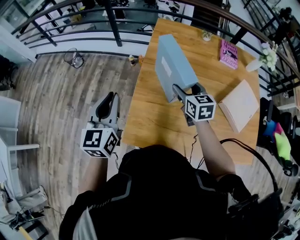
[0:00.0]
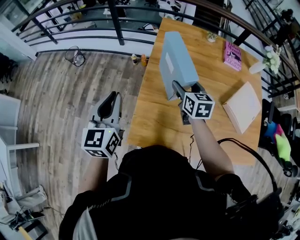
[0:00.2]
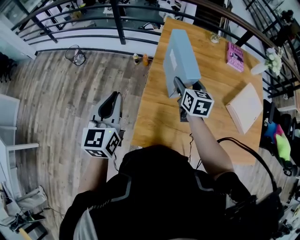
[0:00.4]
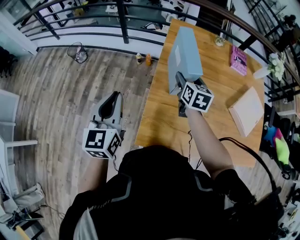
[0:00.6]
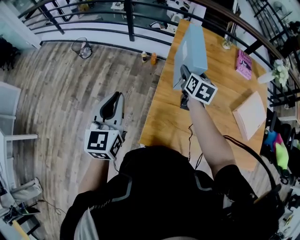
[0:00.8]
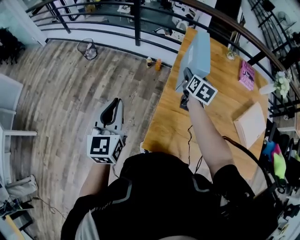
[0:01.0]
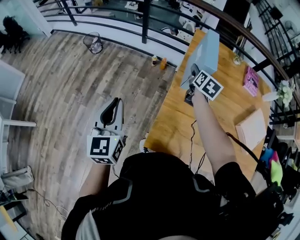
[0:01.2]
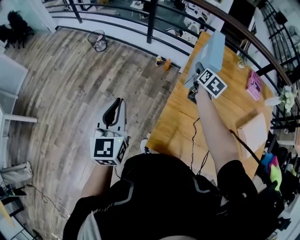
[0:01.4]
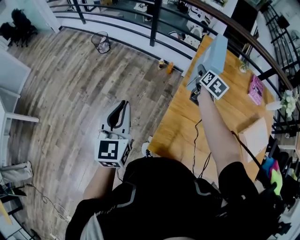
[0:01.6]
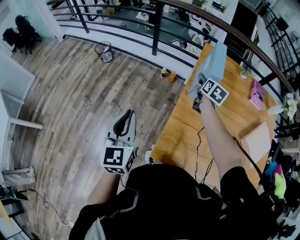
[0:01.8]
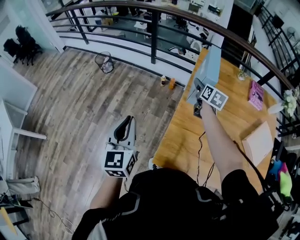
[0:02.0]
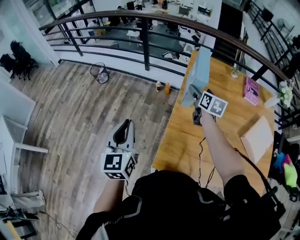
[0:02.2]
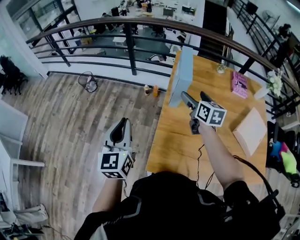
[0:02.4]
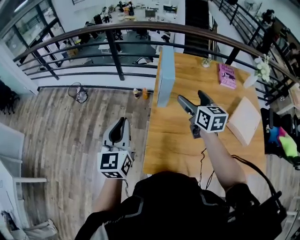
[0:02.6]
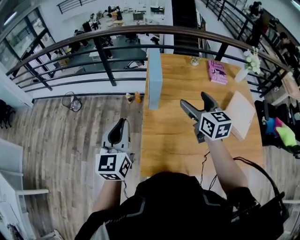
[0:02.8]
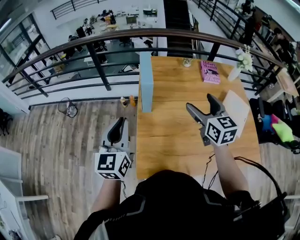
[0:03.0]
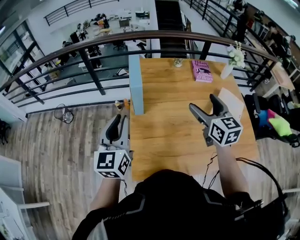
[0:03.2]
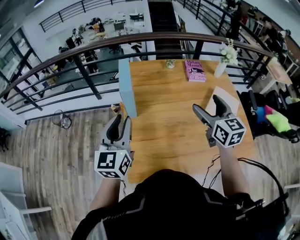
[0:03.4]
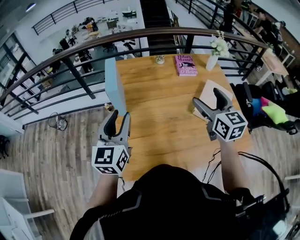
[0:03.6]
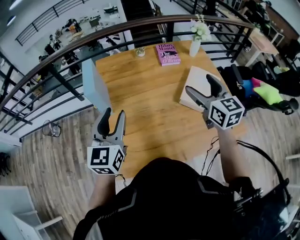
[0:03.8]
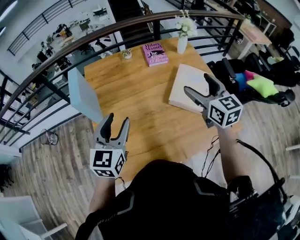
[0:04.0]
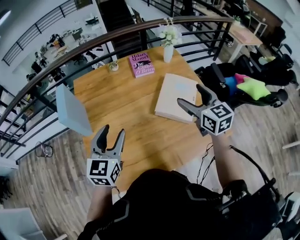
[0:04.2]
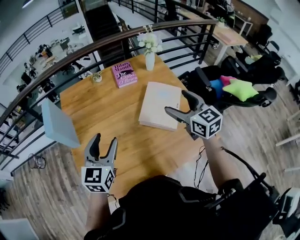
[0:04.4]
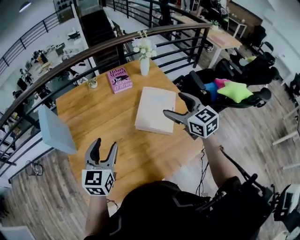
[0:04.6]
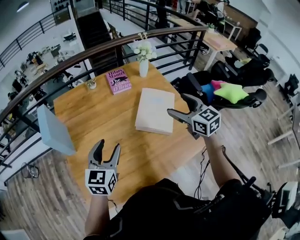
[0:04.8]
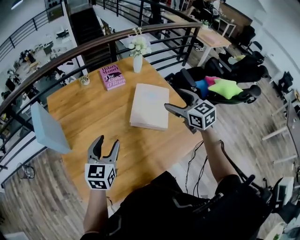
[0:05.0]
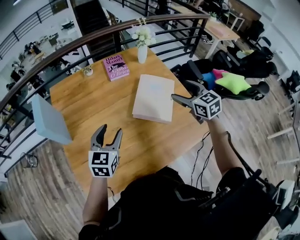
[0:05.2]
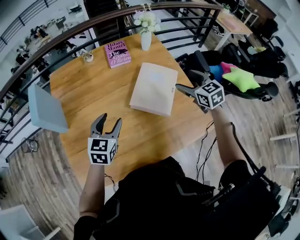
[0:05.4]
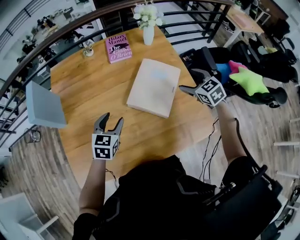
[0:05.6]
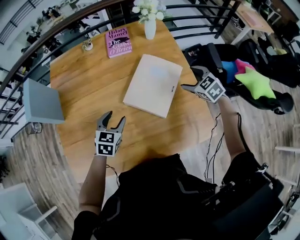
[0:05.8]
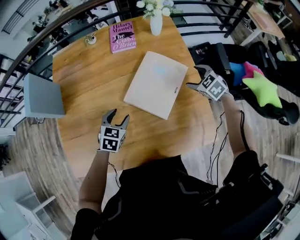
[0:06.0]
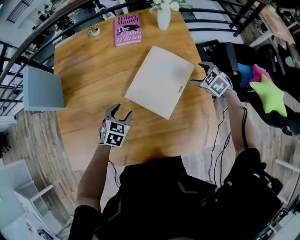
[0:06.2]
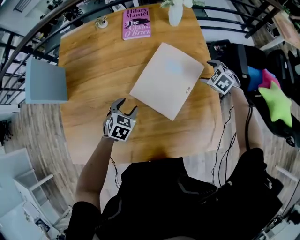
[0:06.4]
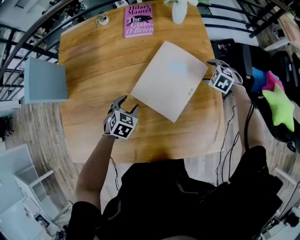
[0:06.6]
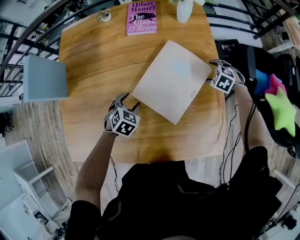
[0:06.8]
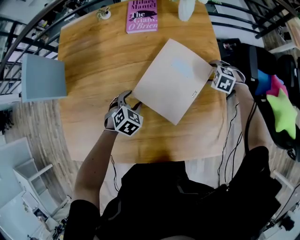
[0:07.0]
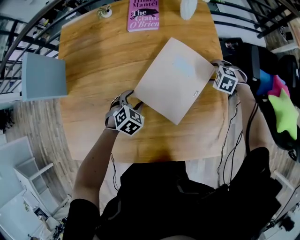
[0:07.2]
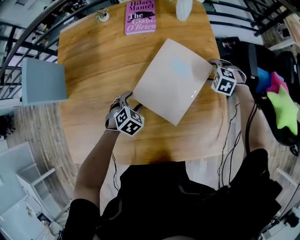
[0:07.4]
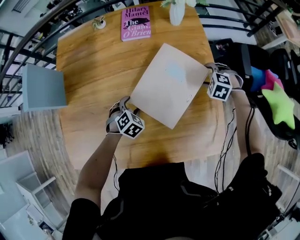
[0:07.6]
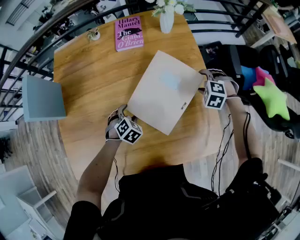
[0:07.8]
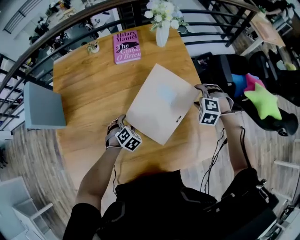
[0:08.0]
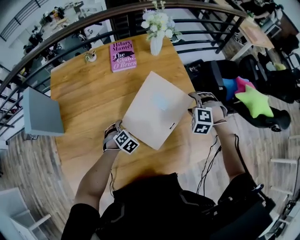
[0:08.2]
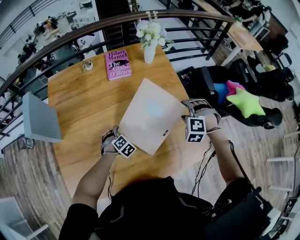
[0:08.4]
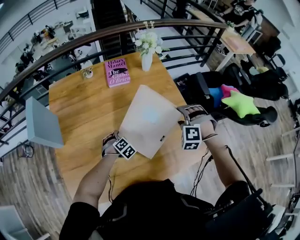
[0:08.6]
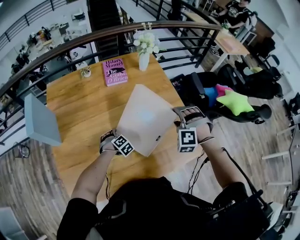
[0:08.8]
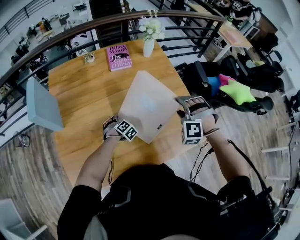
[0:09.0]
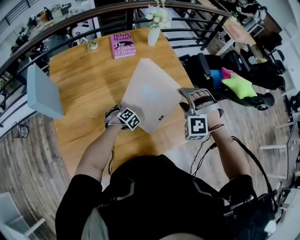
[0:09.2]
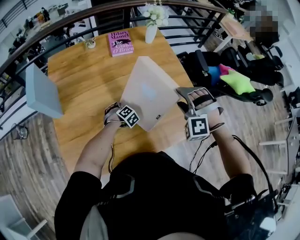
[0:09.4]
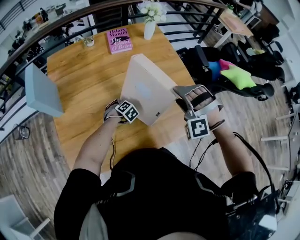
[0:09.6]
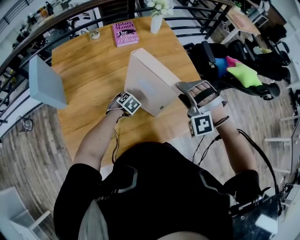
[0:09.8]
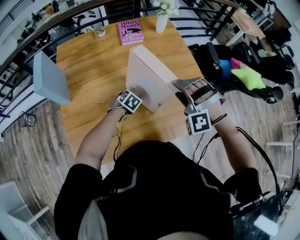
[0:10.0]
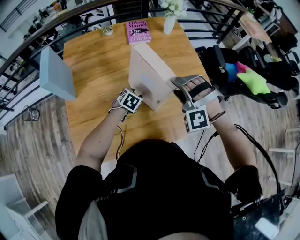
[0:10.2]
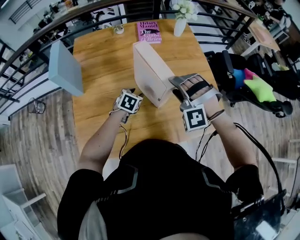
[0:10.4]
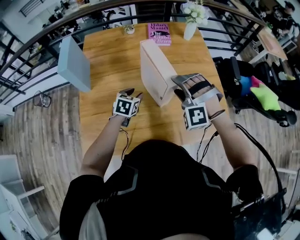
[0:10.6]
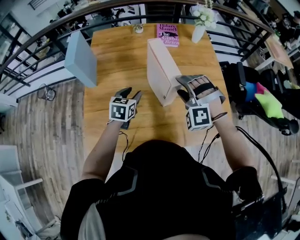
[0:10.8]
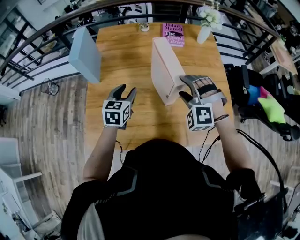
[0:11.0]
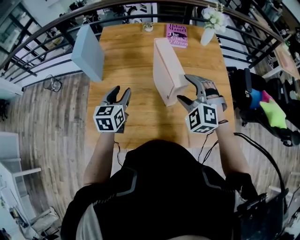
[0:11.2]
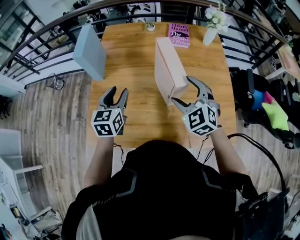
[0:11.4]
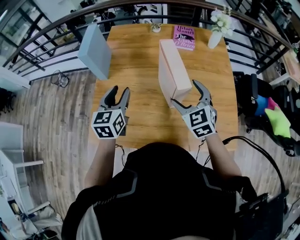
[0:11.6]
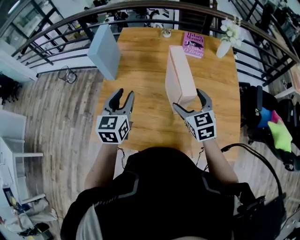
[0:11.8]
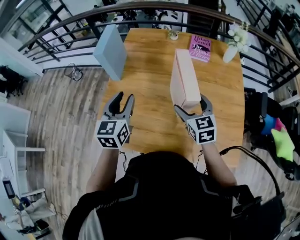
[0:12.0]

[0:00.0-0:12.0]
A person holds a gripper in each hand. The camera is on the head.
0:00.0 to 0:01.6: The right gripper travels forward and to the left by about 20 cm, and turns by roughly 30 degrees, while the left gripper shifts some 15 cm to the left.
0:01.6 to 0:03.0: The right gripper is displaced backward, upward and to the right by approximately 30 cm, and turns by some 30 degrees. The left gripper goes roughly 15 cm to the right, and turns by approximately 30 degrees.
0:03.0 to 0:04.4: Both grippers travel together to the right, some 35 cm. The left gripper changes its angle by some 30 degrees, and opens its fingers.
0:04.4 to 0:06.0: The left gripper is displaced downward and to the right by some 25 cm, and tilts its fingers some 30 degrees downward, while the right gripper moves downward, to the right and forward, roughly 35 cm, and angles its fingers downward, by some 40 degrees.
0:06.0 to 0:07.6: The grippers both shift downward by approximately 10 cm. The left gripper turns by some 30 degrees; the right gripper rotates some 30 degrees.
0:07.6 to 0:09.0: The right gripper is displaced upward, backward and to the left by approximately 30 cm, and turns by some 40 degrees. The left gripper is displaced to the left by some 5 cm.
0:09.0 to 0:10.4: The left gripper travels upward by roughly 10 cm, and changes its angle by about 40 degrees. The right gripper moves to the left, some 15 cm, and changes its angle by about 20 degrees.
0:10.4 to 0:12.0: The left gripper shifts roughly 25 cm upward, and points its fingers approximately 30 degrees further upward. The right gripper shifts by roughly 5 cm, twists about 80 degrees clockwise, seen from behind, and opens its fingers.

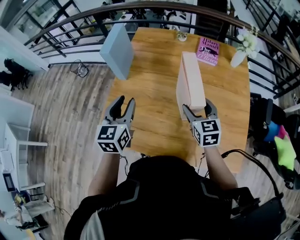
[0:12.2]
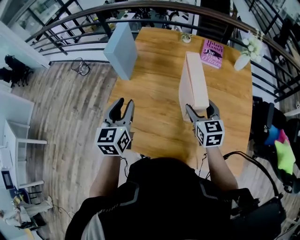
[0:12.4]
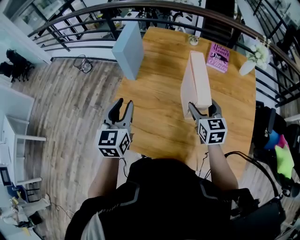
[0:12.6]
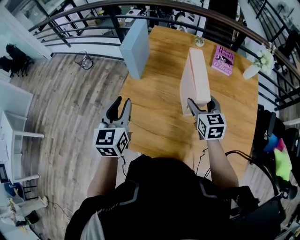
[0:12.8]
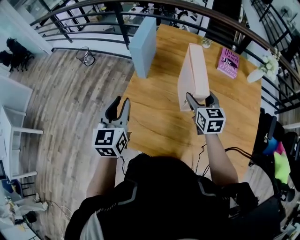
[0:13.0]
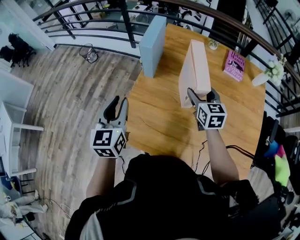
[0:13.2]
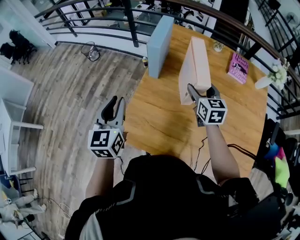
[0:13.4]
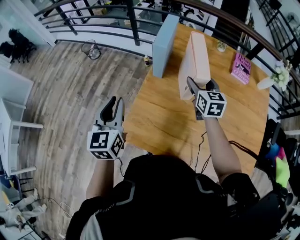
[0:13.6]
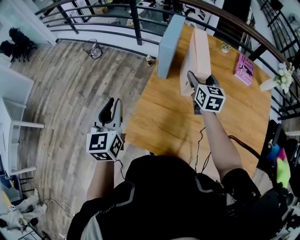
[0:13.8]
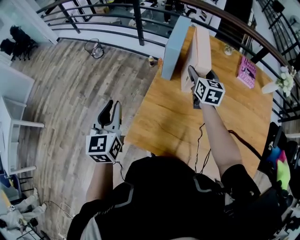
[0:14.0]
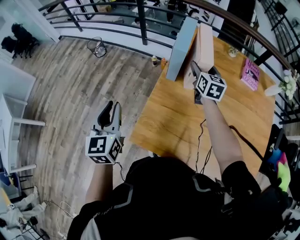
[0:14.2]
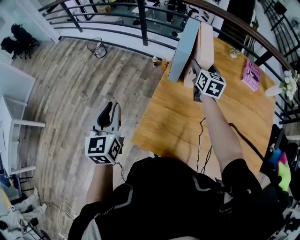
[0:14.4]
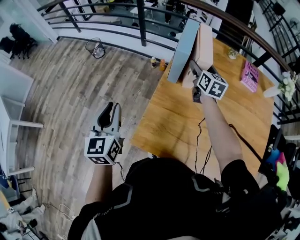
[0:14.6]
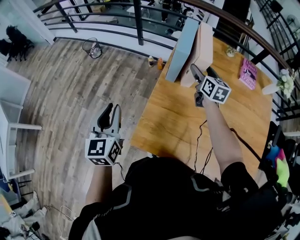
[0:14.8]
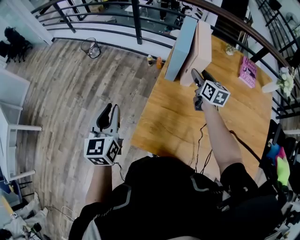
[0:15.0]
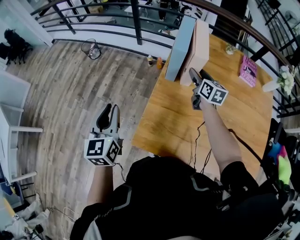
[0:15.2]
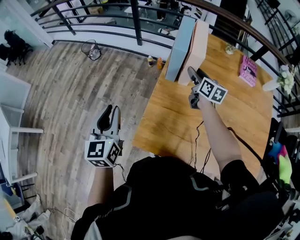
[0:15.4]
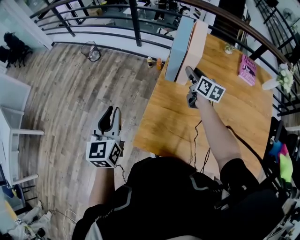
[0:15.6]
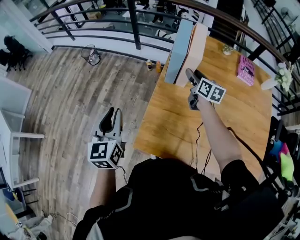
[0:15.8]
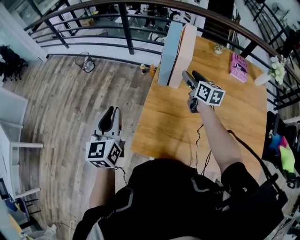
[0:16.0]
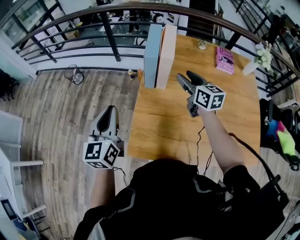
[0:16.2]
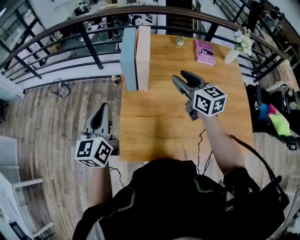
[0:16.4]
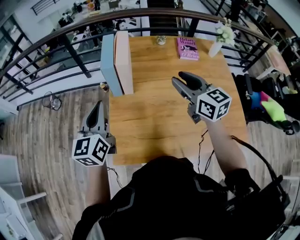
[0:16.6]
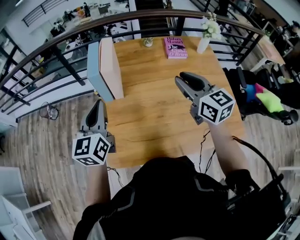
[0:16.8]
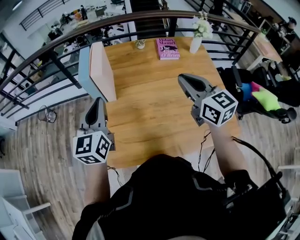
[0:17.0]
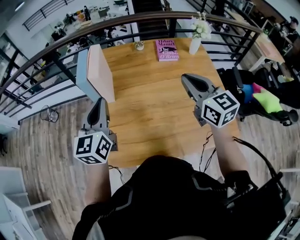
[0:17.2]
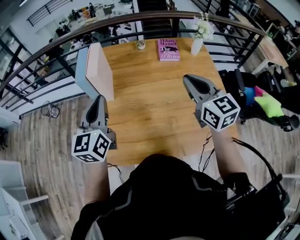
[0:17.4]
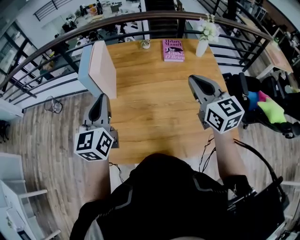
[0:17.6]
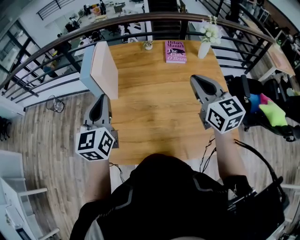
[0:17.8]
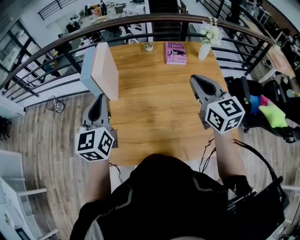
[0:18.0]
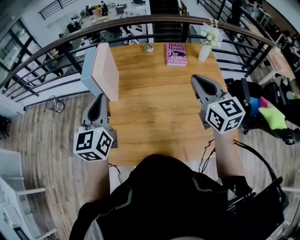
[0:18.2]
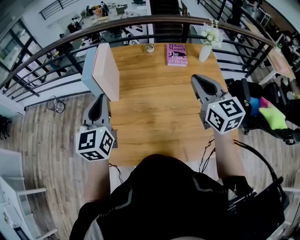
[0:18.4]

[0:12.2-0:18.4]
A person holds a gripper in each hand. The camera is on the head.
0:12.2 to 0:13.8: The left gripper is displaced to the left by about 30 cm; the right gripper is displaced forward and to the left by roughly 30 cm.
0:13.8 to 0:15.4: The left gripper shifts about 5 cm to the left, while the right gripper travels forward by some 5 cm, and turns by roughly 20 degrees.
0:15.4 to 0:16.8: The right gripper travels backward, upward and to the right by about 35 cm, and changes its angle by about 30 degrees. The left gripper heads to the right and upward, covering approximately 25 cm, and swivels approximately 30 degrees.
0:16.8 to 0:18.4: Both grippers travel together to the right, some 10 cm.

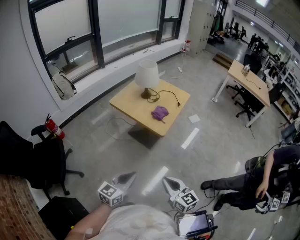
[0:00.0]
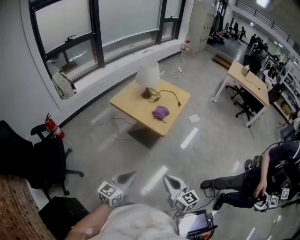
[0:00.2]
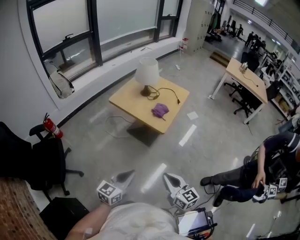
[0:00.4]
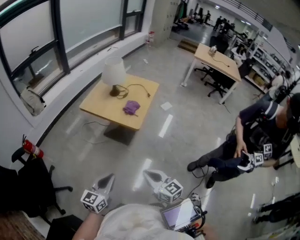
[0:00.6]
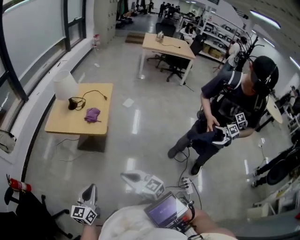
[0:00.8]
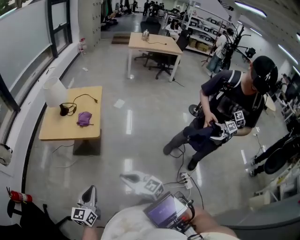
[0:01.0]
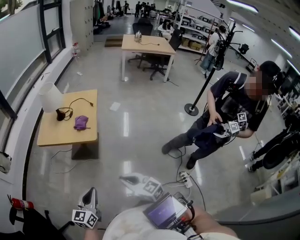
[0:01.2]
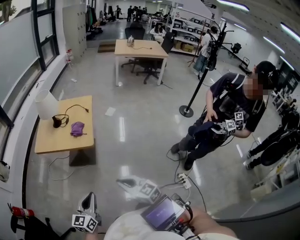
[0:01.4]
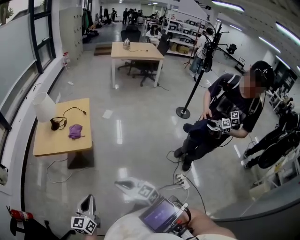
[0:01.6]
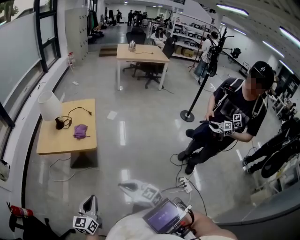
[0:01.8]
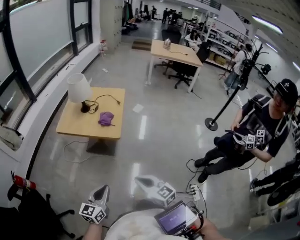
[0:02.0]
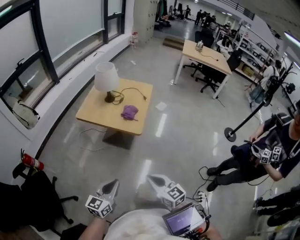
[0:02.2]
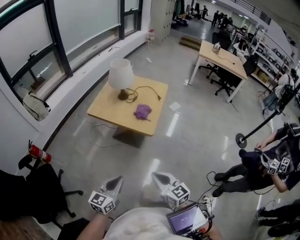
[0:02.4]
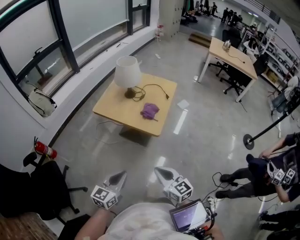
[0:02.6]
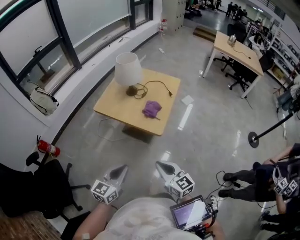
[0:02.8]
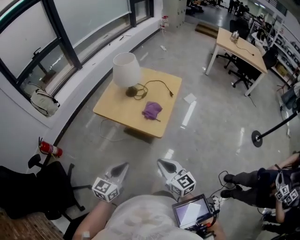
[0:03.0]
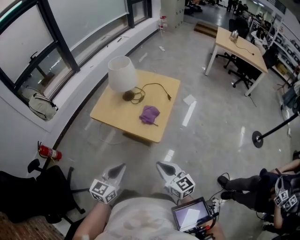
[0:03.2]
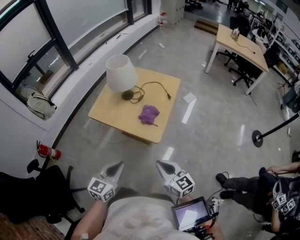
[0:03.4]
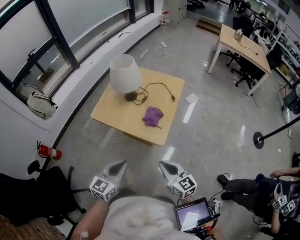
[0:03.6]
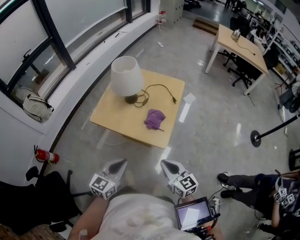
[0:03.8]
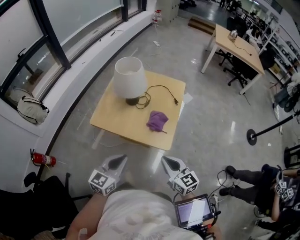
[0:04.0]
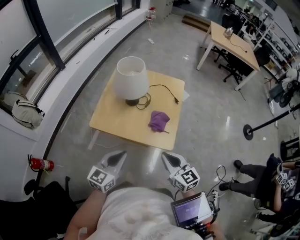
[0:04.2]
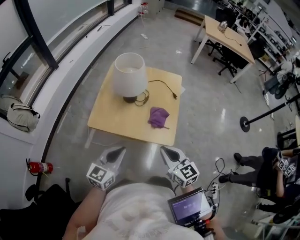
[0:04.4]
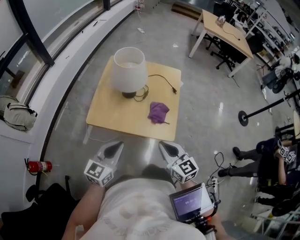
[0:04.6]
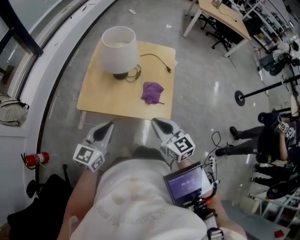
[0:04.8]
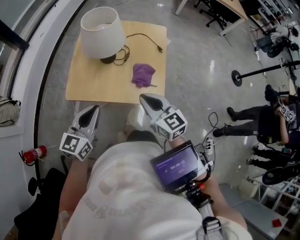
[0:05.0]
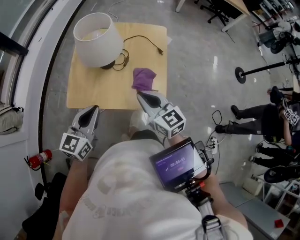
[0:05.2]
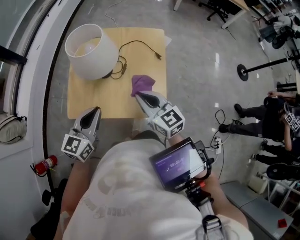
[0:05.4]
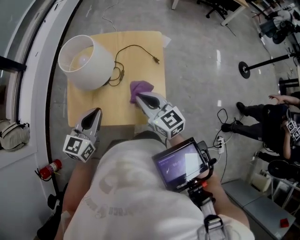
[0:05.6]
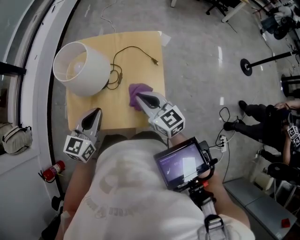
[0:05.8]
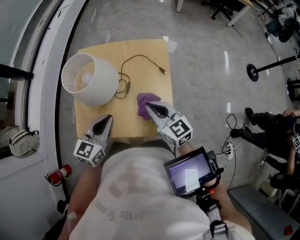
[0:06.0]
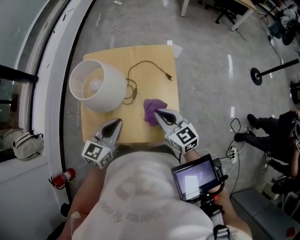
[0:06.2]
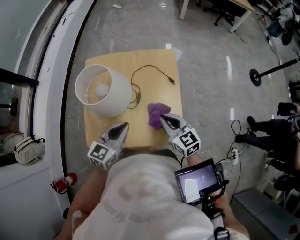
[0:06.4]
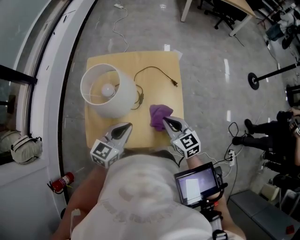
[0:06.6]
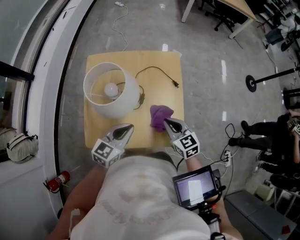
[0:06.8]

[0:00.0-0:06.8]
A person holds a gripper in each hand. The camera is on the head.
0:00.0 to 0:01.4: The grippers move only a little.
0:01.4 to 0:02.8: The grippers both shift forward by approximately 15 cm.
0:02.8 to 0:04.0: Both grippers travel together forward, some 20 cm.
0:04.0 to 0:05.4: The grippers both shift forward by approximately 20 cm.
0:05.4 to 0:06.8: The right gripper shifts roughly 10 cm downward. Meanwhile the left gripper shifts roughly 10 cm forward and downward.
